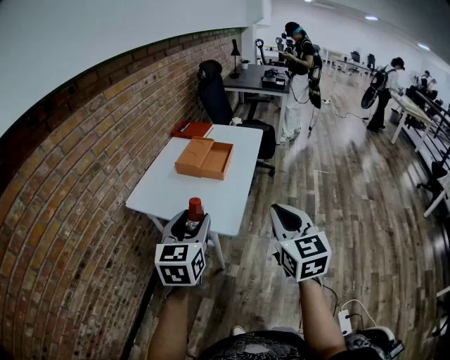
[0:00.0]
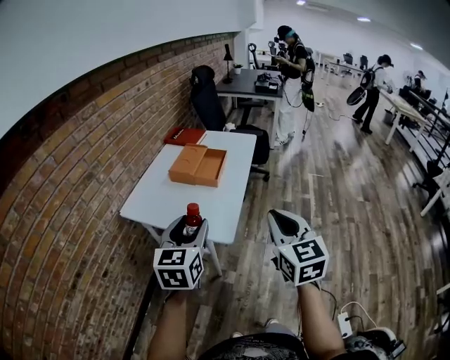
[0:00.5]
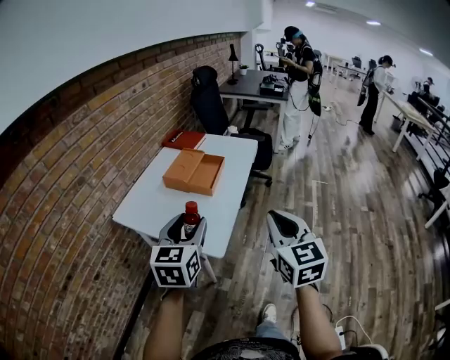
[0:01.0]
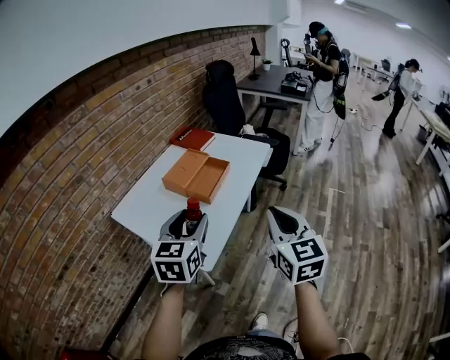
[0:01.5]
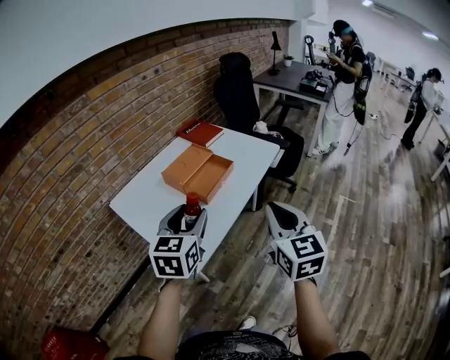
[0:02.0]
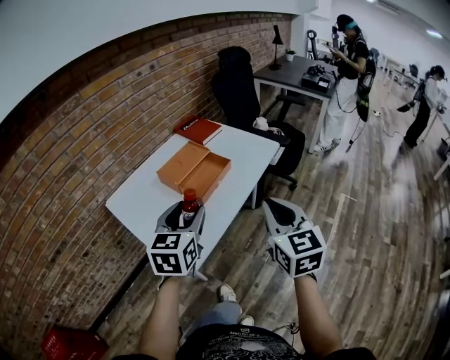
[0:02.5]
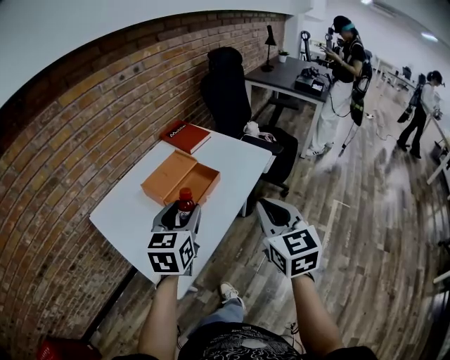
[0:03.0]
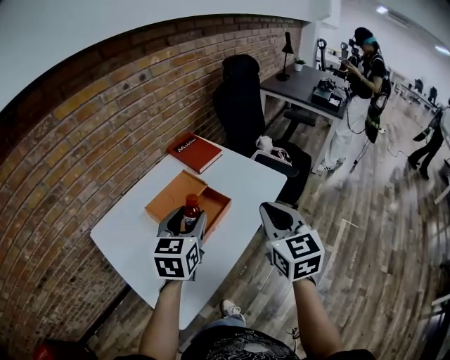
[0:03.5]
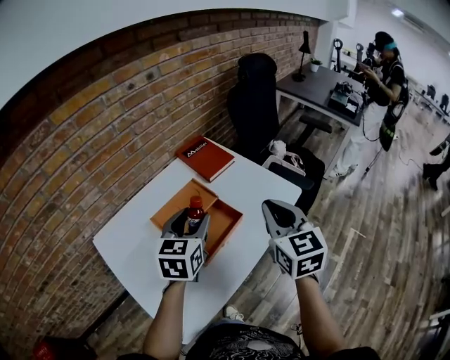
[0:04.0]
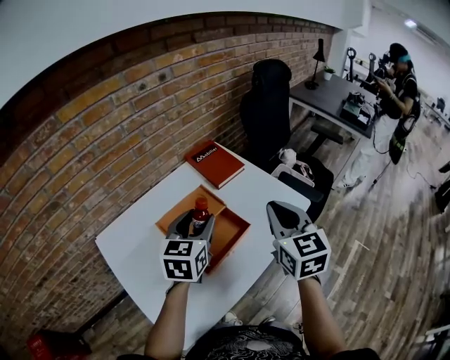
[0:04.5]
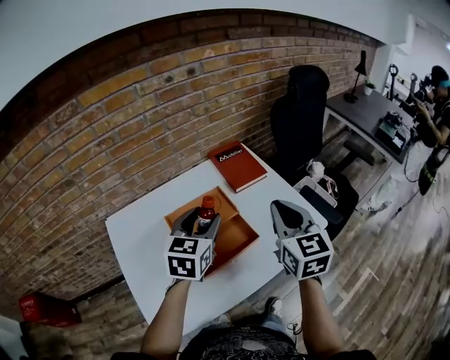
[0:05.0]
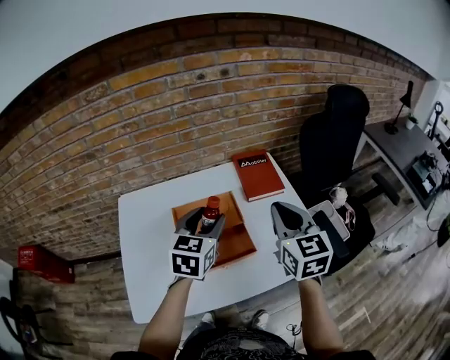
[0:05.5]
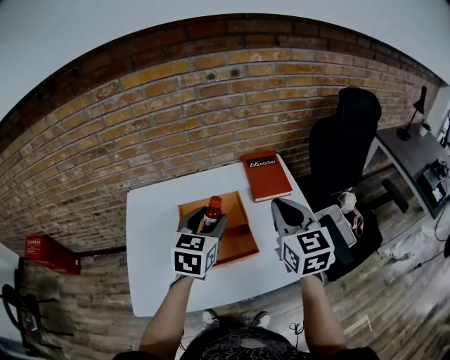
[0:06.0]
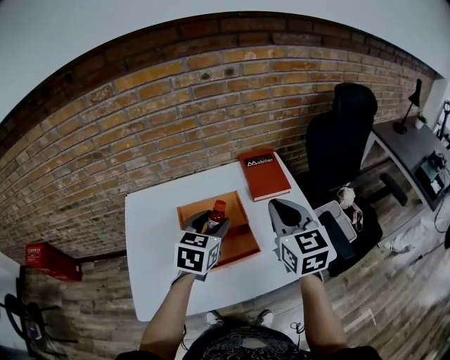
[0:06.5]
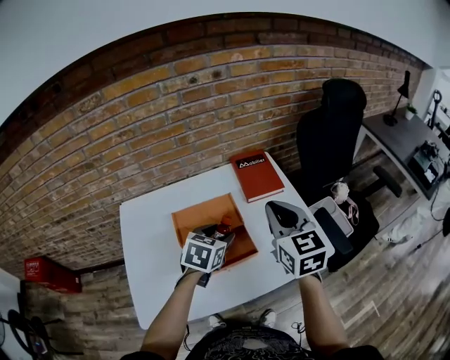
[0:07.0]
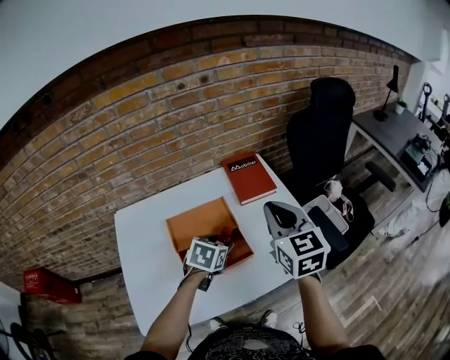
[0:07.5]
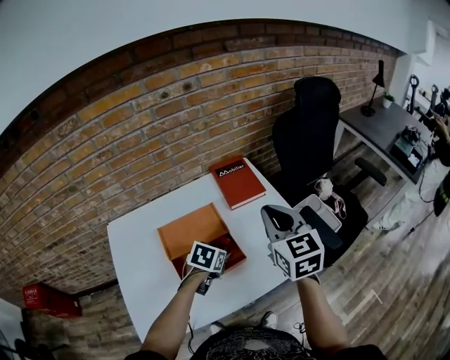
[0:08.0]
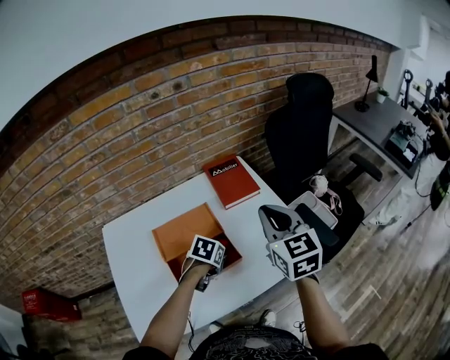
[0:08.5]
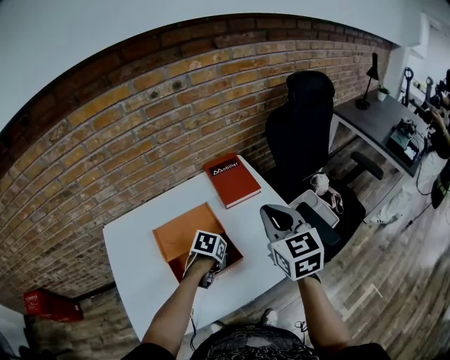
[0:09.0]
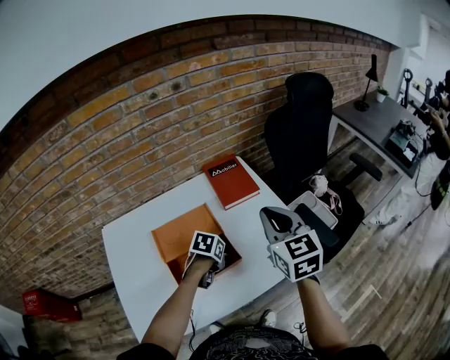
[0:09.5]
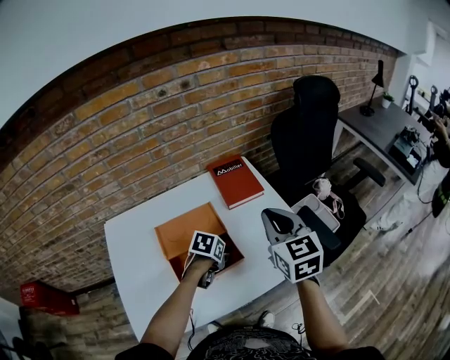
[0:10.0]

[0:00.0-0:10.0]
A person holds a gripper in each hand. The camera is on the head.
0:00.0 to 0:02.0: The grippers both shift forward and to the right by approximately 25 cm.
0:02.0 to 0:04.0: Both grippers move forward, roughly 30 cm.
0:04.0 to 0:06.0: The left gripper changes place by some 5 cm, and swivels roughly 30 degrees, while the right gripper changes place by some 15 cm, and rotates some 30 degrees.
0:06.0 to 0:08.0: The left gripper heads downward, covering approximately 20 cm, and tilts its fingers roughly 30 degrees downward.
0:08.0 to 0:10.0: The grippers move only a little.

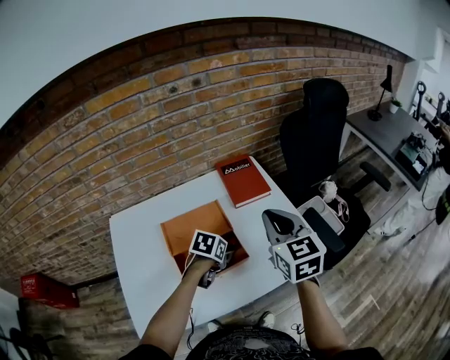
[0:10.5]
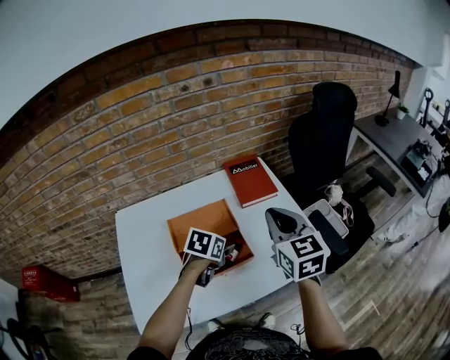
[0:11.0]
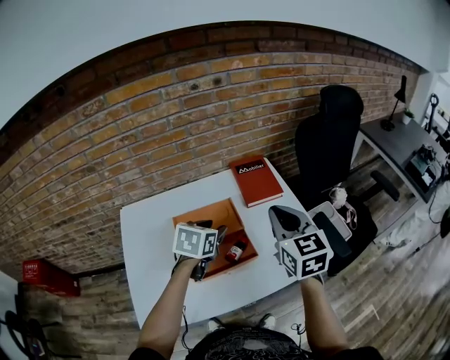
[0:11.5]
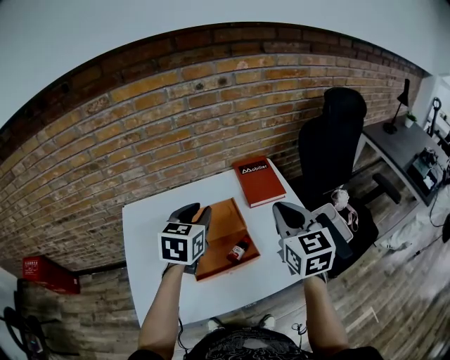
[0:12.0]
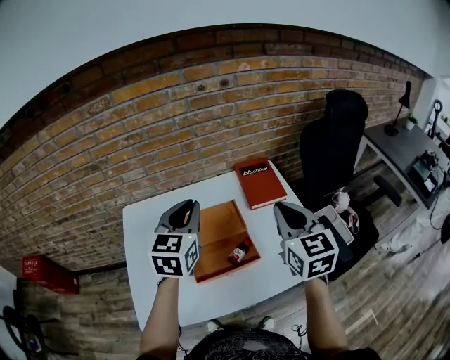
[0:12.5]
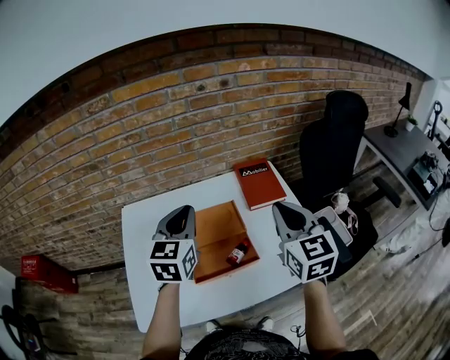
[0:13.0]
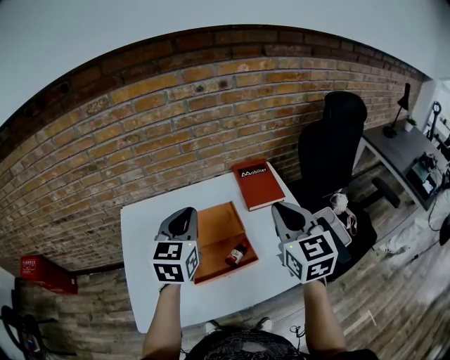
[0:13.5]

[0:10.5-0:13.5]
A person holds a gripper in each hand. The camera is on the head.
0:10.5 to 0:12.0: The left gripper goes about 25 cm upward and to the left, tips its fingers upward by about 30 degrees, and closes up.
0:12.0 to 0:13.5: The left gripper closes.

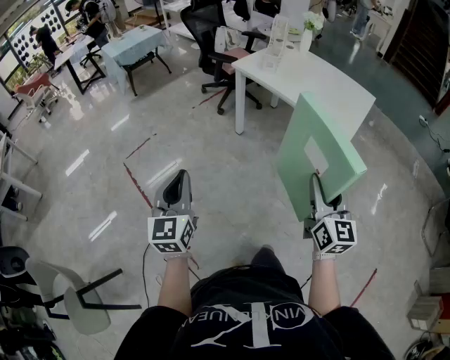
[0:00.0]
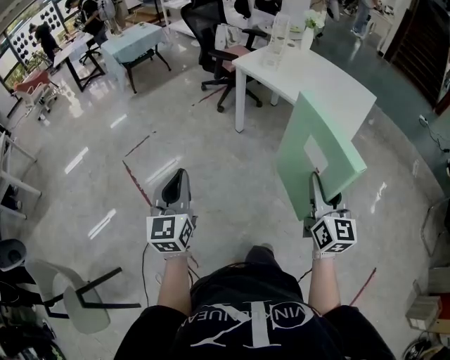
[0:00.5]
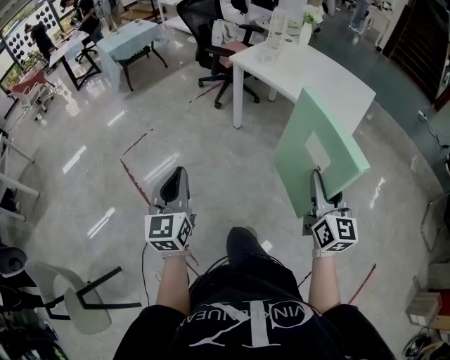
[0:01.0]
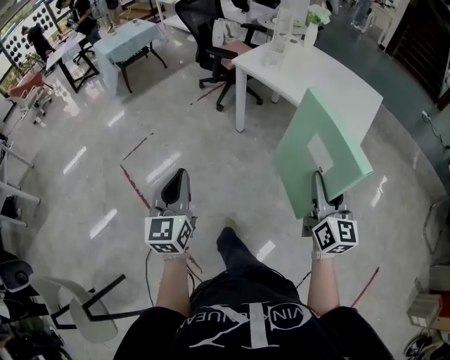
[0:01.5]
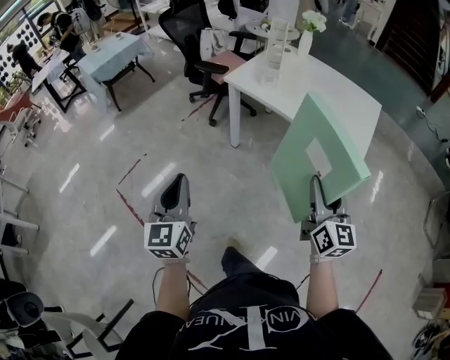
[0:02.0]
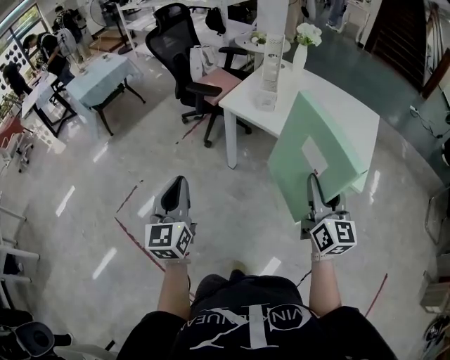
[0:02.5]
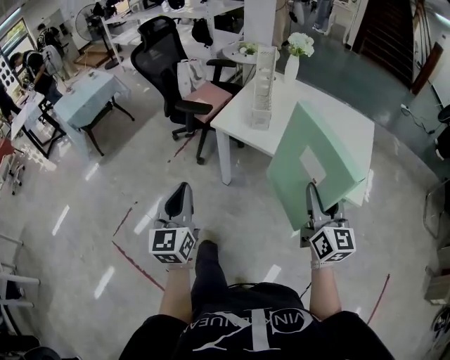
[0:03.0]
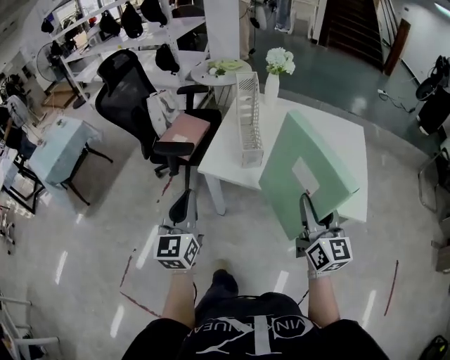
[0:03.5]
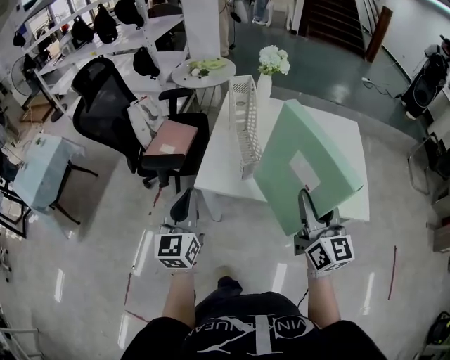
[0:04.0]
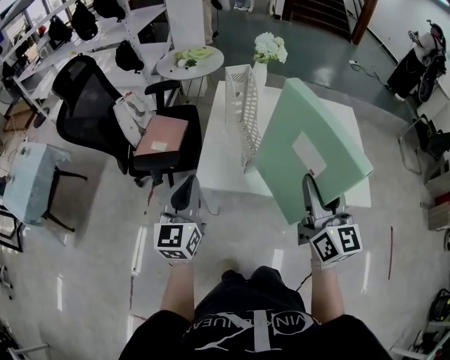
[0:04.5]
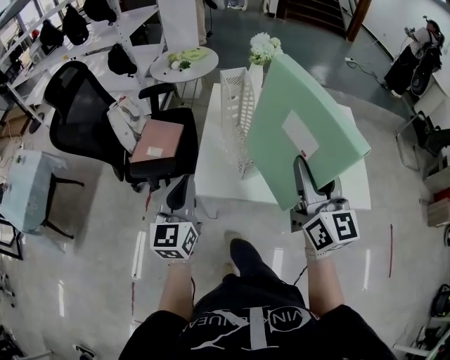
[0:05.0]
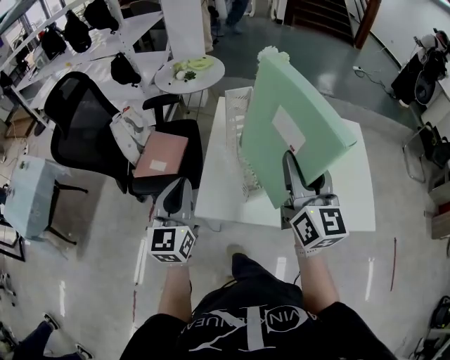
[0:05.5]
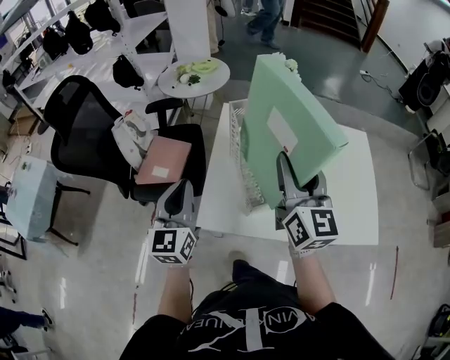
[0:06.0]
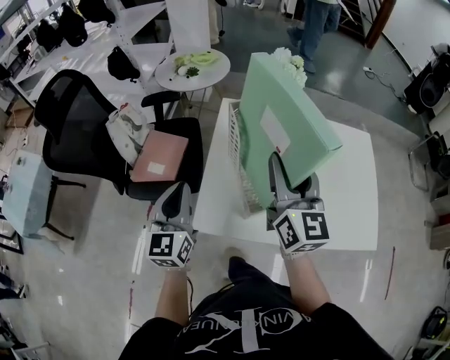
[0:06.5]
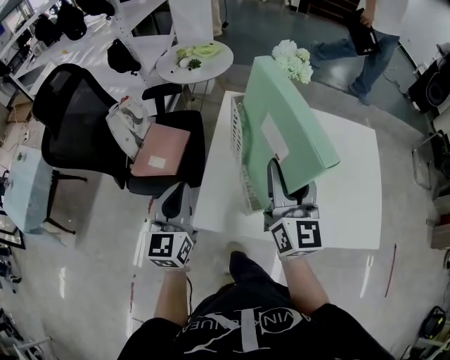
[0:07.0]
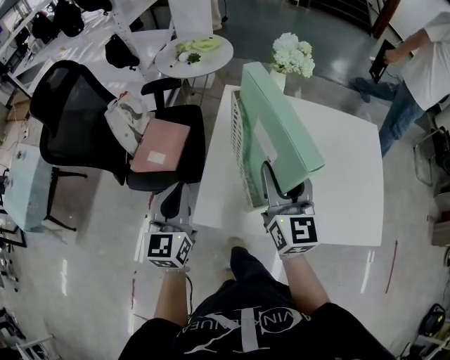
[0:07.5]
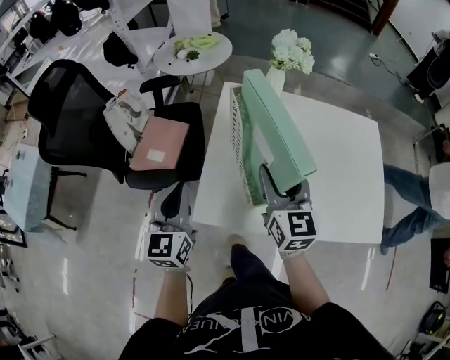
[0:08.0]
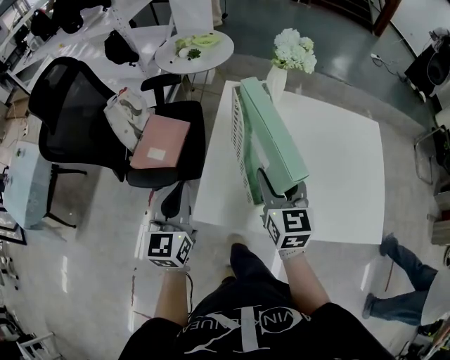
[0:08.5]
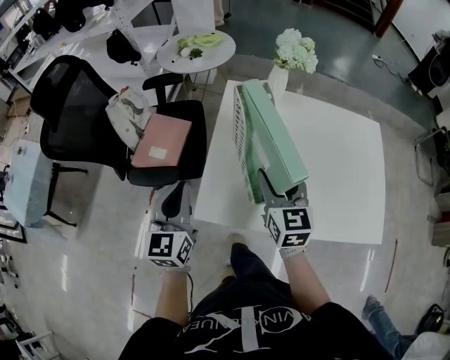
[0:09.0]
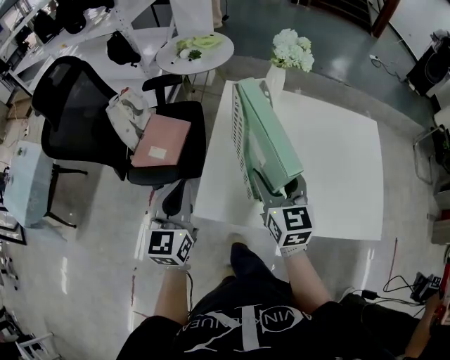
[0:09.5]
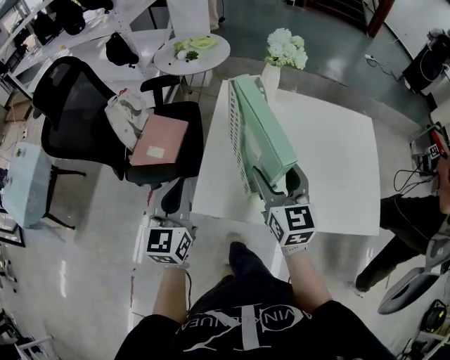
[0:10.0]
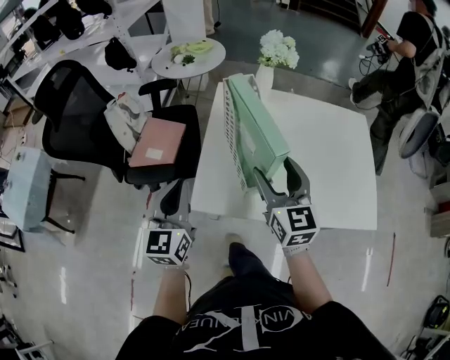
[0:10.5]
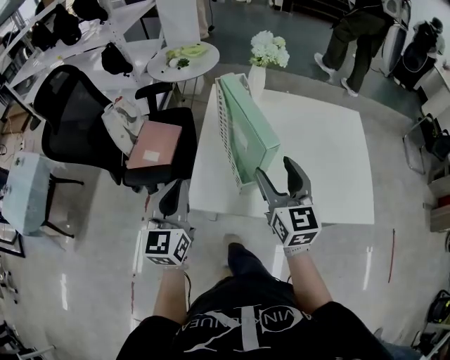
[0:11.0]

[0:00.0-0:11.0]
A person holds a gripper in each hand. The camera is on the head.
0:00.0 to 0:02.0: The grippers both shift forward by about 20 cm.
0:02.0 to 0:03.5: Both grippers move forward, about 40 cm. The left gripper swivels approximately 20 degrees.
0:03.5 to 0:05.5: The right gripper is displaced forward and to the left by approximately 30 cm. The left gripper moves forward, about 25 cm.
0:05.5 to 0:07.5: The right gripper shifts roughly 15 cm downward and forward. The left gripper heads forward and downward, covering roughly 10 cm.
0:07.5 to 0:09.0: The right gripper moves downward, approximately 5 cm.
0:09.0 to 0:11.0: The right gripper is displaced backward and upward by roughly 10 cm. The left gripper shifts approximately 5 cm backward.

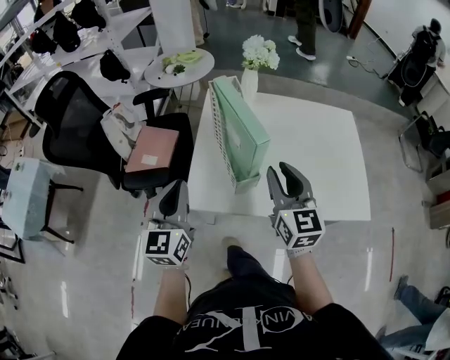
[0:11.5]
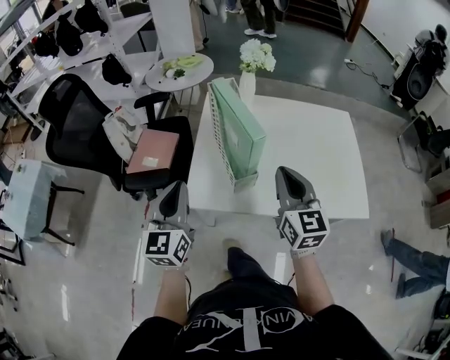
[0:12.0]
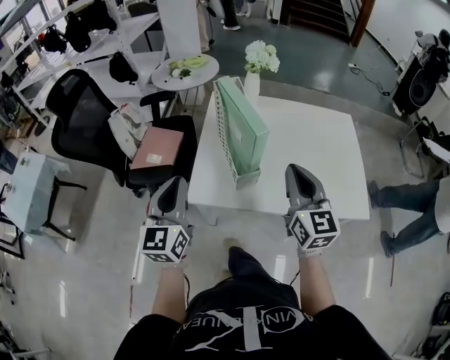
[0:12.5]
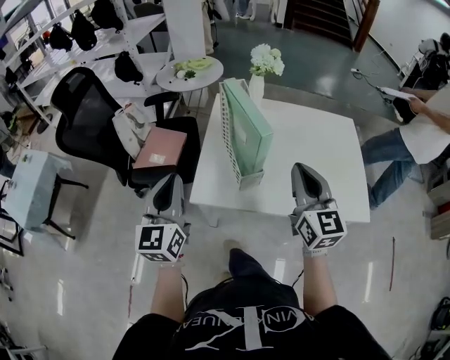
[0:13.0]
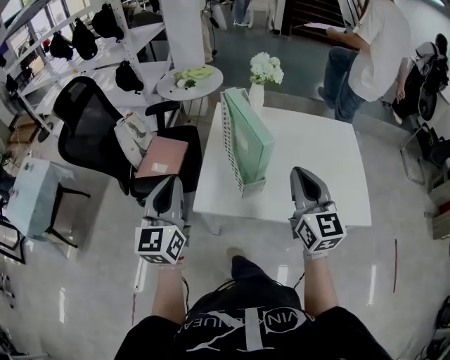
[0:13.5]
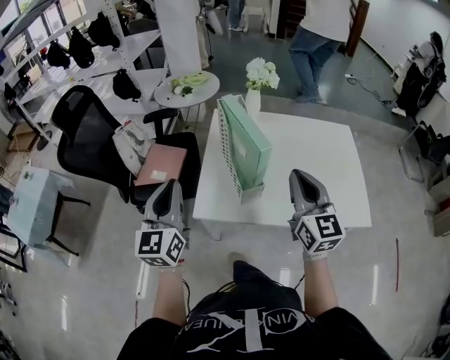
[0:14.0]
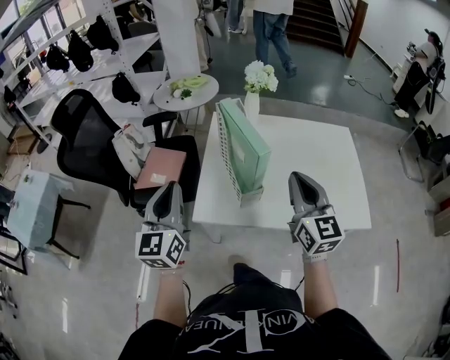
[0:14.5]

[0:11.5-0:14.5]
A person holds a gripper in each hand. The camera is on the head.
0:11.5 to 0:13.0: The left gripper changes place by approximately 5 cm. The right gripper heads backward, covering approximately 5 cm, and closes.
0:13.0 to 0:14.5: The grippers move only a little.
